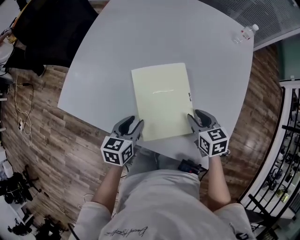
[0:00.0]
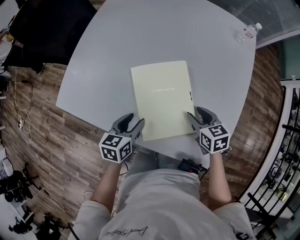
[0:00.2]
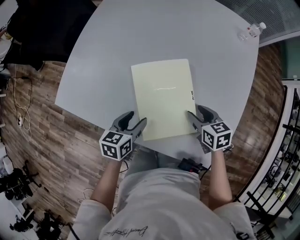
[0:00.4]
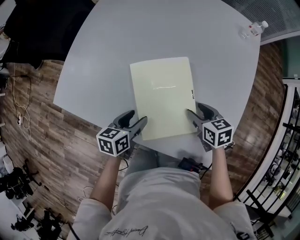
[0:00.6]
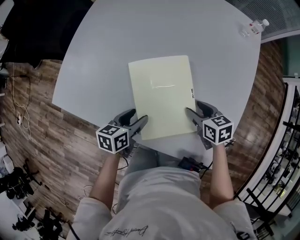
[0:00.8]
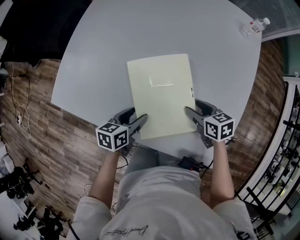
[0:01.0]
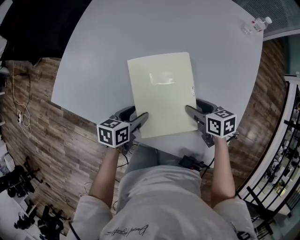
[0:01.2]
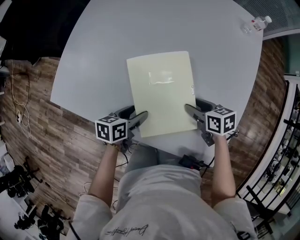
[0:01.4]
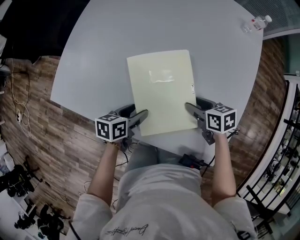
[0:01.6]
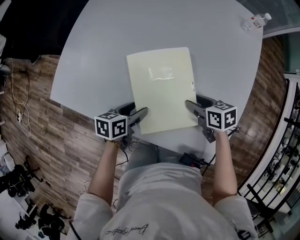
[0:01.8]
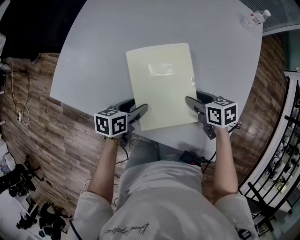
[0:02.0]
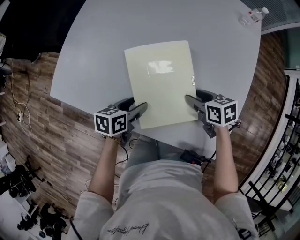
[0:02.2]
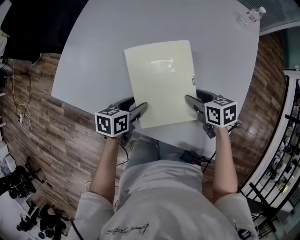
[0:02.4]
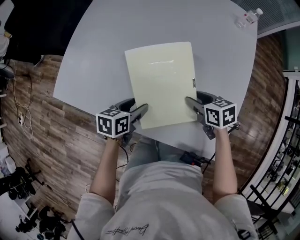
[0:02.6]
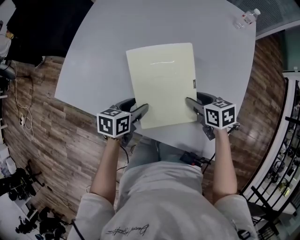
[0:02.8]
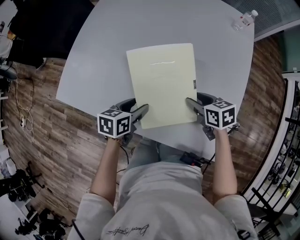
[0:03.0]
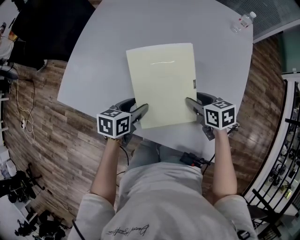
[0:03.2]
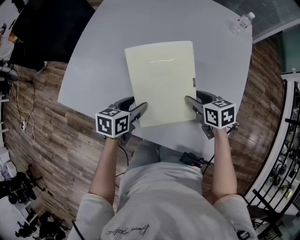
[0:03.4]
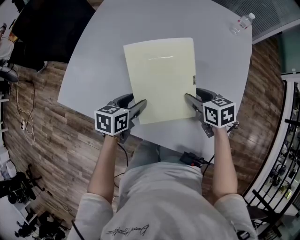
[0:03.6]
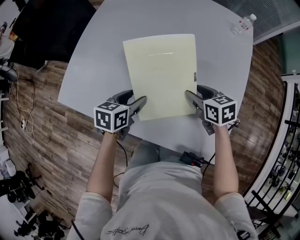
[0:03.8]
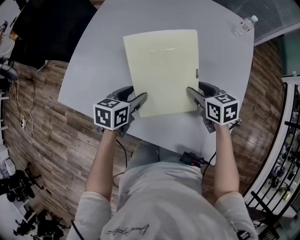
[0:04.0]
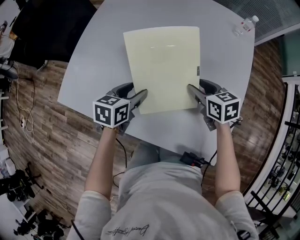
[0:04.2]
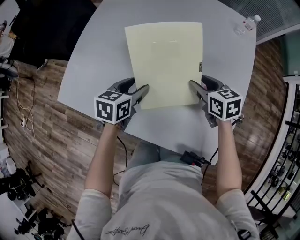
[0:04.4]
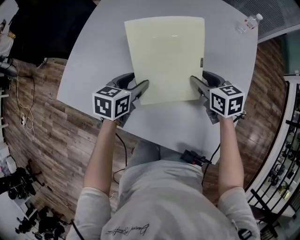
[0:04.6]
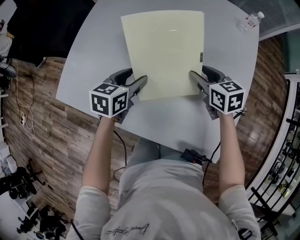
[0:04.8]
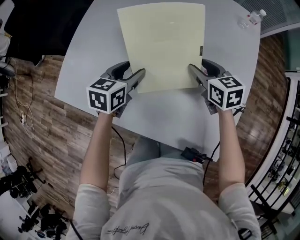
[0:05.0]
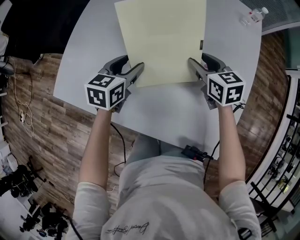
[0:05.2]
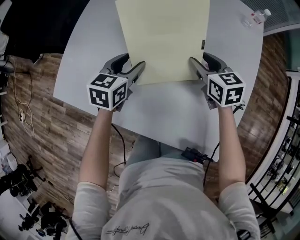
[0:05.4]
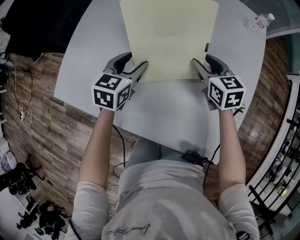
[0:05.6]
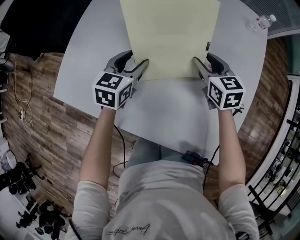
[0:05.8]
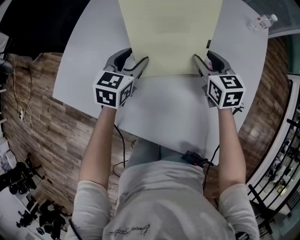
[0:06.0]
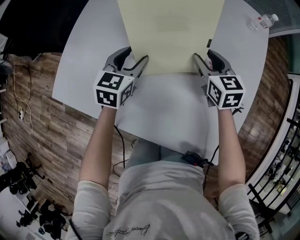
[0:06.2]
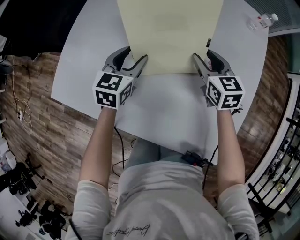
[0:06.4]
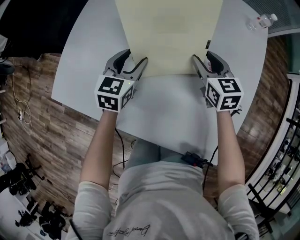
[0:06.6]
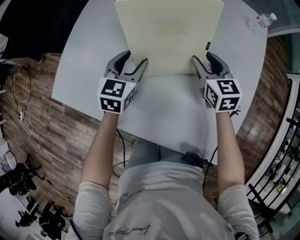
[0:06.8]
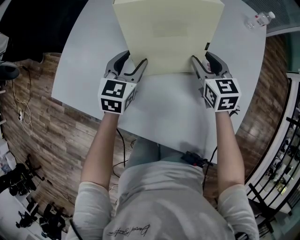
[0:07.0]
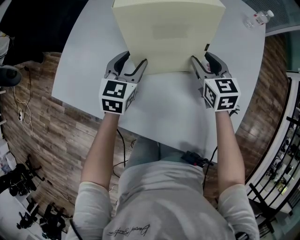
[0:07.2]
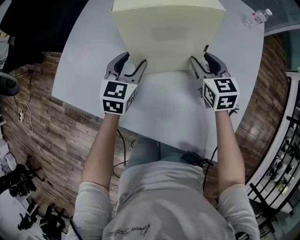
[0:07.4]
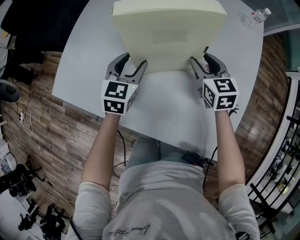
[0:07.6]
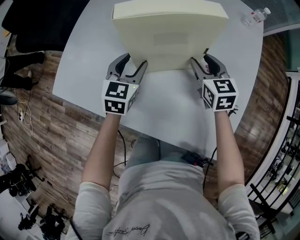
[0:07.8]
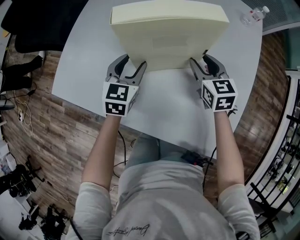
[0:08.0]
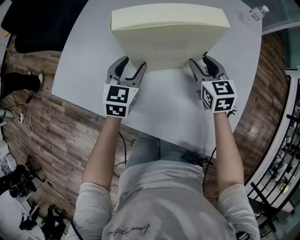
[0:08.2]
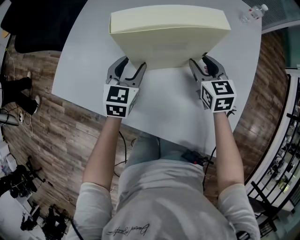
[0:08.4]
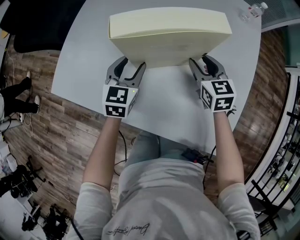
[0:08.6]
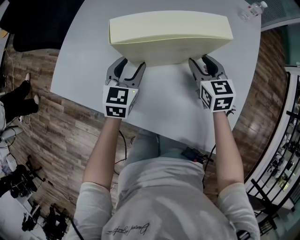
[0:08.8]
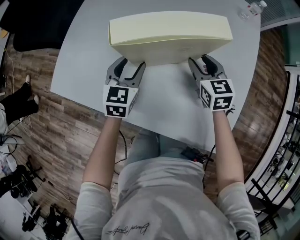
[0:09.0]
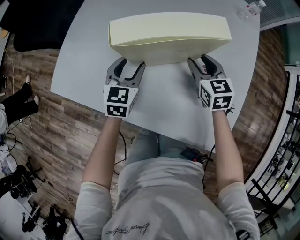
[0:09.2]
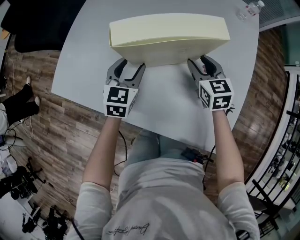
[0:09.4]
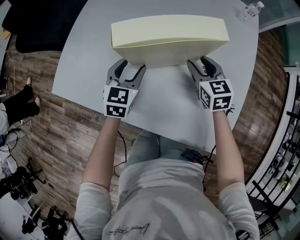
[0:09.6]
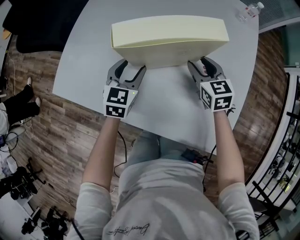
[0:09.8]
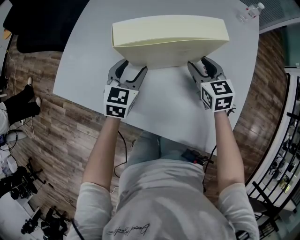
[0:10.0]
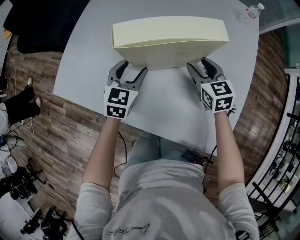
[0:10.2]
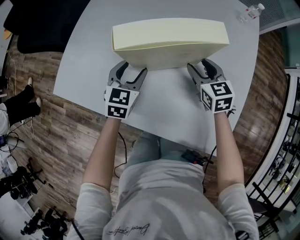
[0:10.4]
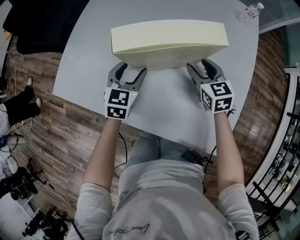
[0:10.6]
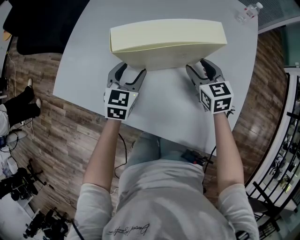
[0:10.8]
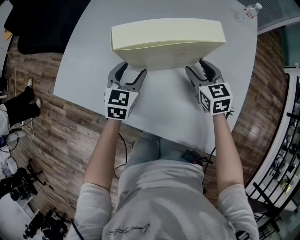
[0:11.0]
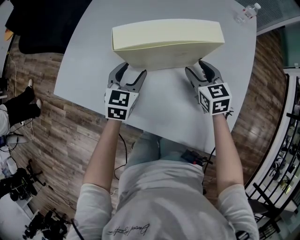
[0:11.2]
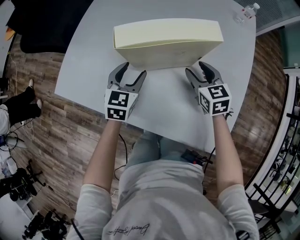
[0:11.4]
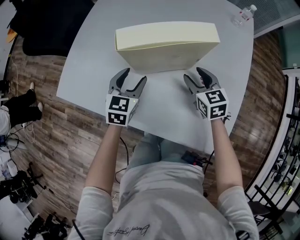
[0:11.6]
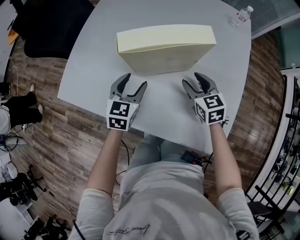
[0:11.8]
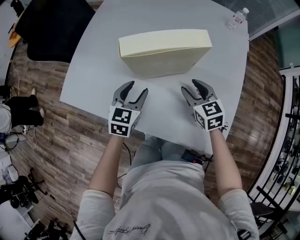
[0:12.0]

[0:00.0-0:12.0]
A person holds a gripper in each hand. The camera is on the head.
0:00.0 to 0:01.6: Both grippers travel together downward, roughly 5 cm. The right gripper changes its angle by roughly 20 degrees. The left gripper swivels roughly 20 degrees, and opens its fingers.
0:01.6 to 0:03.0: The grippers make only small movements.
0:03.0 to 0:04.4: The grippers both shift forward by some 10 cm.
0:04.4 to 0:06.0: Both grippers move forward, roughly 10 cm.
0:06.0 to 0:07.6: The grippers move only a little.
0:07.6 to 0:10.4: There are only small adjustments of the grippers.
0:10.4 to 0:12.0: Both grippers move backward, approximately 5 cm.

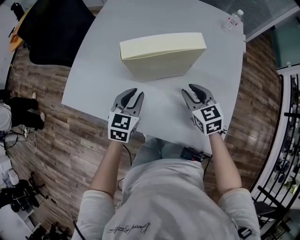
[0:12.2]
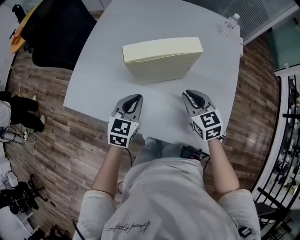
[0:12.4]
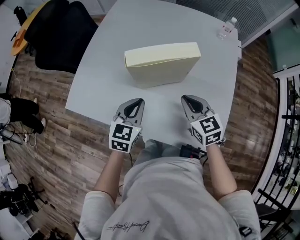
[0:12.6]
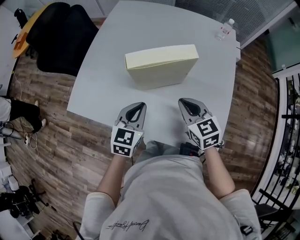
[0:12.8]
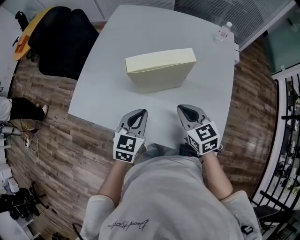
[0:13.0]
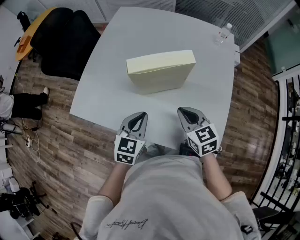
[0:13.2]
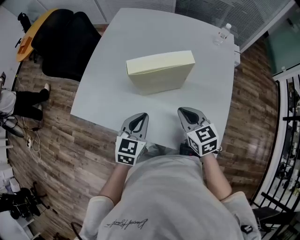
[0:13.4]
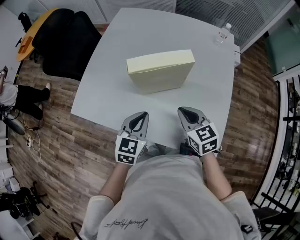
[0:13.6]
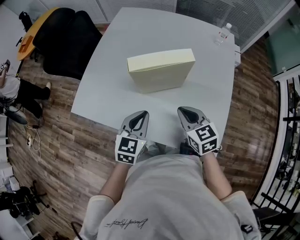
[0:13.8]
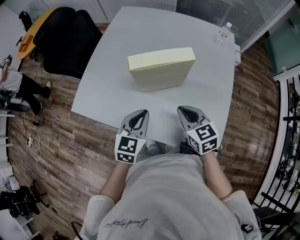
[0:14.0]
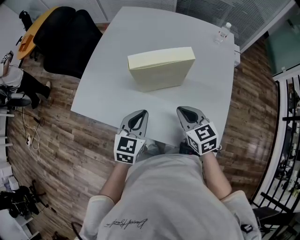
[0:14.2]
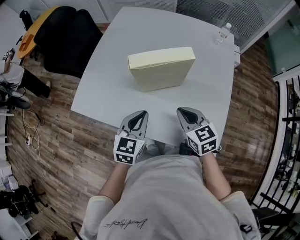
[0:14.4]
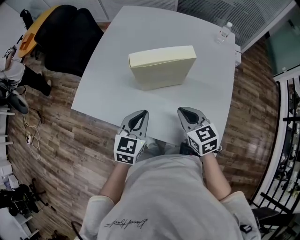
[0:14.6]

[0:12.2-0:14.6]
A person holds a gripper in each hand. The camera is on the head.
0:12.2 to 0:13.4: The two grippers go about 10 cm upward and backward. The right gripper closes up.
0:13.4 to 0:14.6: The grippers stay close to where they were, moving slightly.

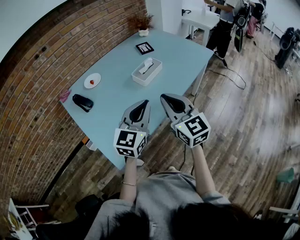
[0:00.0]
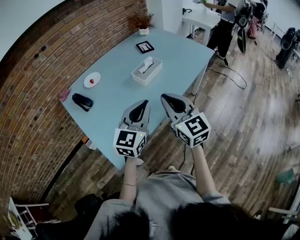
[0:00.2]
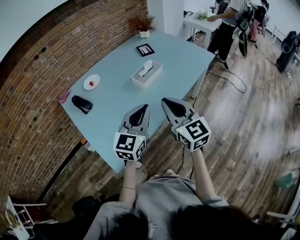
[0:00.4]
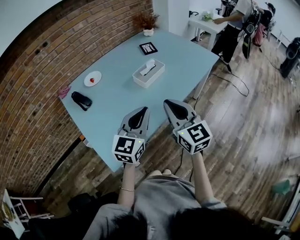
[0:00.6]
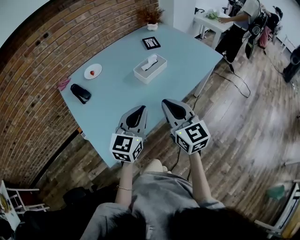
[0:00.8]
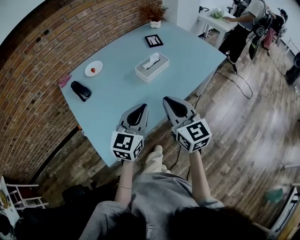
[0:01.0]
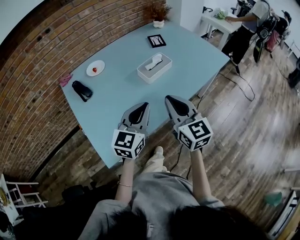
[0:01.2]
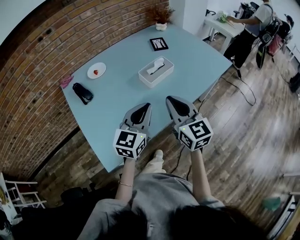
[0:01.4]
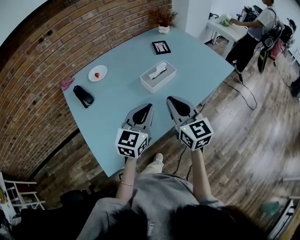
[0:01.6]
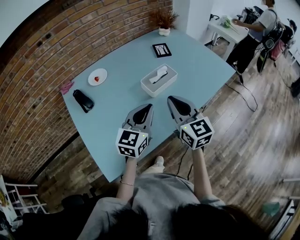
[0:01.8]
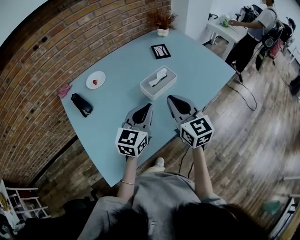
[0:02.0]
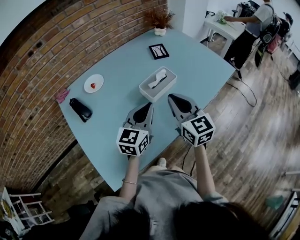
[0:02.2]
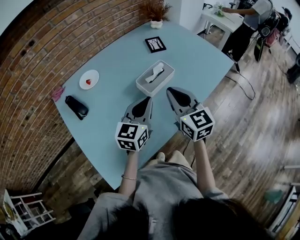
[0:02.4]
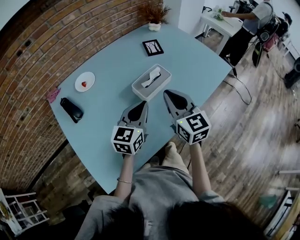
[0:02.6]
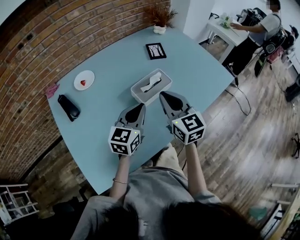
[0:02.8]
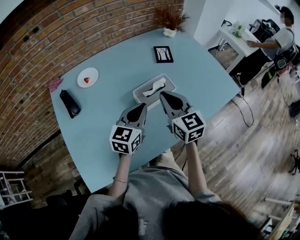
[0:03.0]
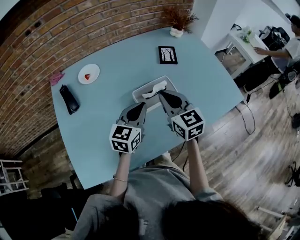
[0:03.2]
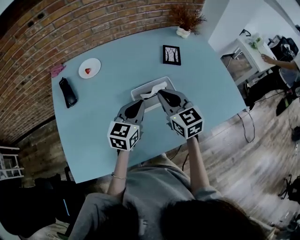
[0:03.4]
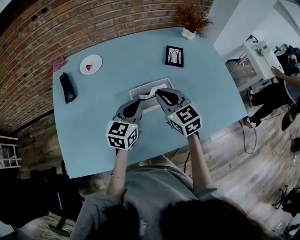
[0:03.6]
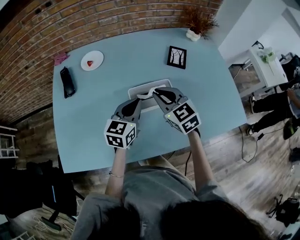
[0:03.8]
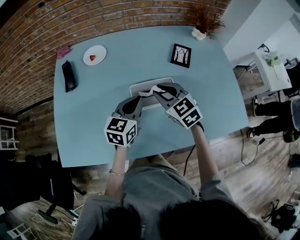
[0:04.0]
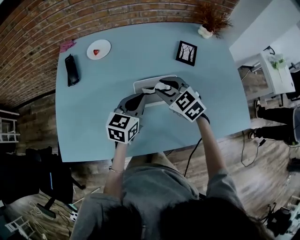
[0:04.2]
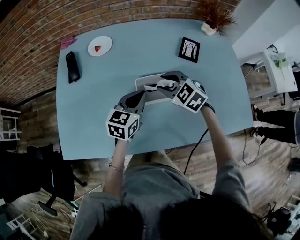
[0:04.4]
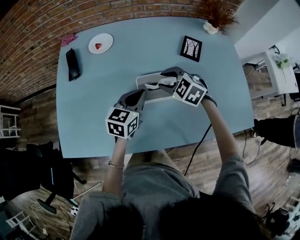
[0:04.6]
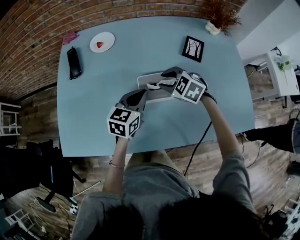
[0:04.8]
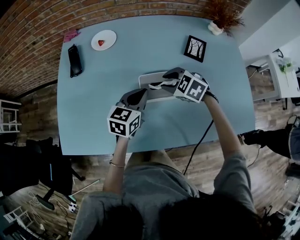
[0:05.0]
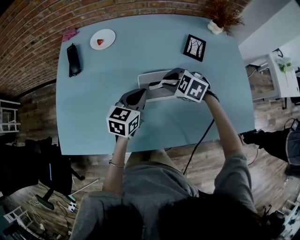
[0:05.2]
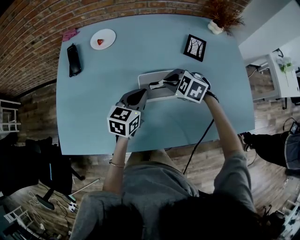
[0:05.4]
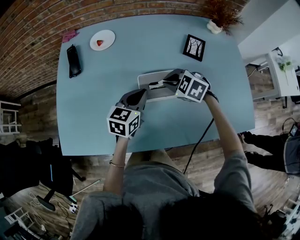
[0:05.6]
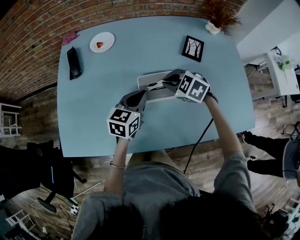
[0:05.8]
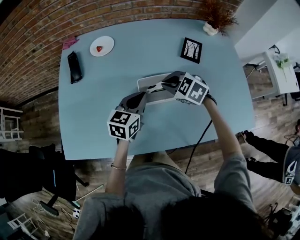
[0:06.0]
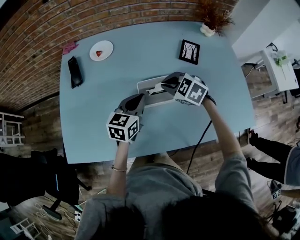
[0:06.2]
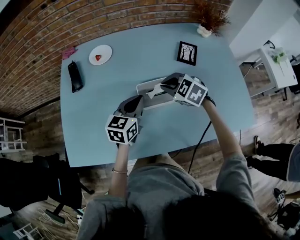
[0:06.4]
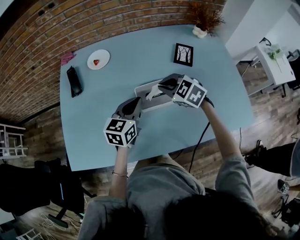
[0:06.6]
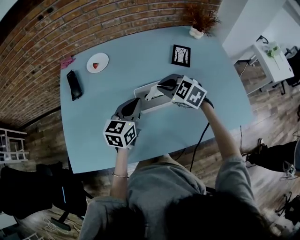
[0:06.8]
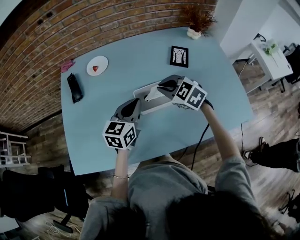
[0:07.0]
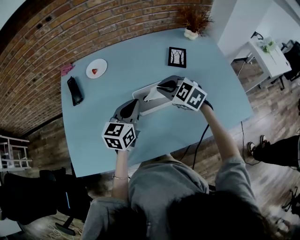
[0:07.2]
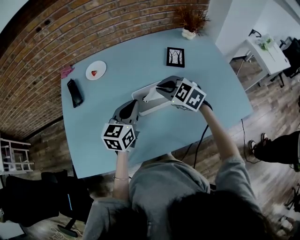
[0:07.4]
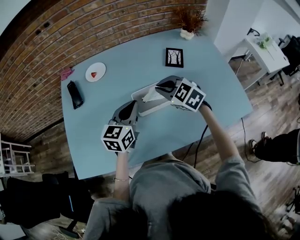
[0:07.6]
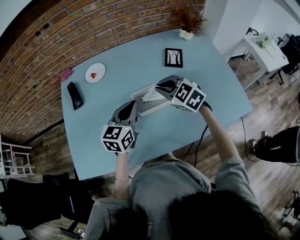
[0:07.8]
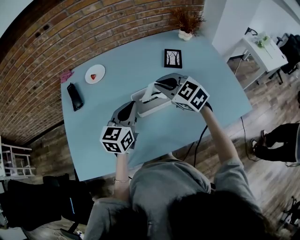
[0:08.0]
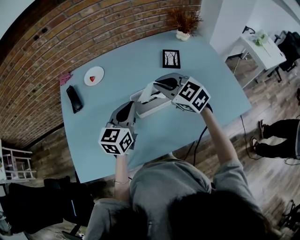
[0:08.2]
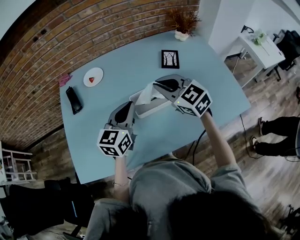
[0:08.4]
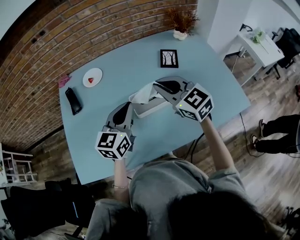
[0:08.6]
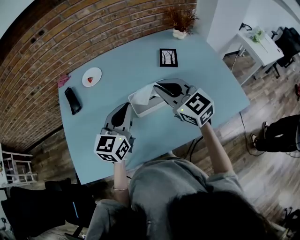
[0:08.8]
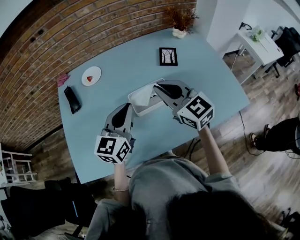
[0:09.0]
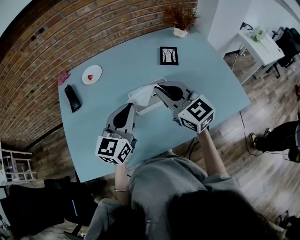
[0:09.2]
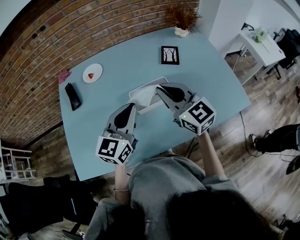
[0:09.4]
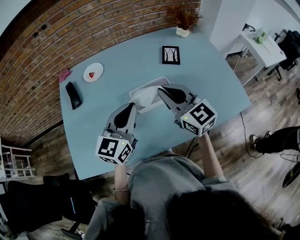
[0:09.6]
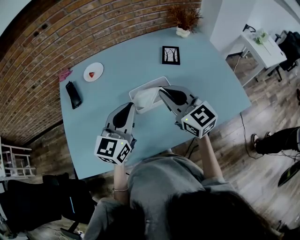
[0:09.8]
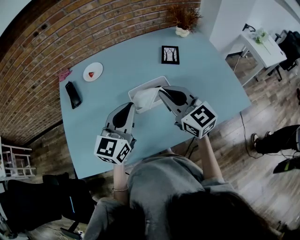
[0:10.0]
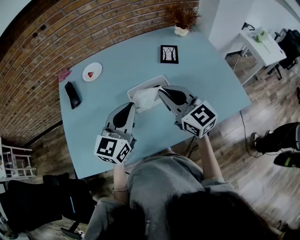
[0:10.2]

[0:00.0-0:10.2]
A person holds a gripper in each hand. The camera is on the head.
0:00.0 to 0:01.4: Both grippers travel together forward, roughly 10 cm.
0:01.4 to 0:03.0: Both grippers move forward, some 20 cm.
0:03.0 to 0:04.4: The right gripper travels downward by approximately 10 cm, tilts its fingers roughly 30 degrees downward, and opens, while the left gripper moves about 10 cm, and turns by about 20 degrees.
0:04.4 to 0:05.8: The right gripper closes.
0:05.8 to 0:07.2: The two grippers go about 5 cm upward.
0:07.2 to 0:08.8: The left gripper goes approximately 5 cm upward. Meanwhile the right gripper shifts roughly 10 cm upward, and rotates approximately 30 degrees.
0:08.8 to 0:10.2: The grippers move only a little.
